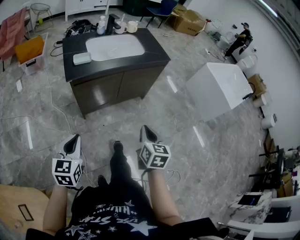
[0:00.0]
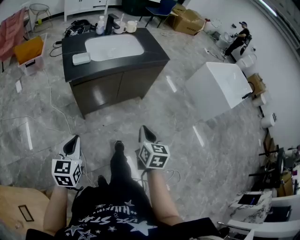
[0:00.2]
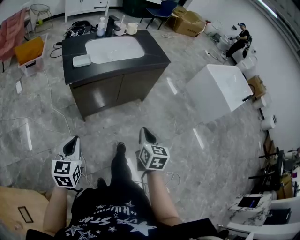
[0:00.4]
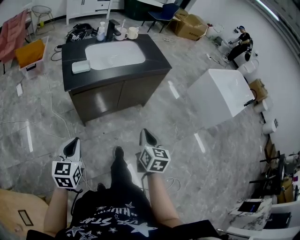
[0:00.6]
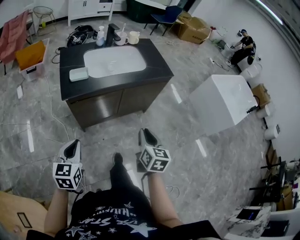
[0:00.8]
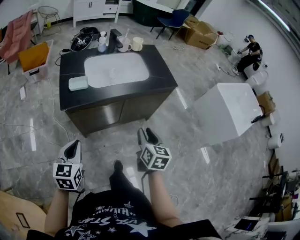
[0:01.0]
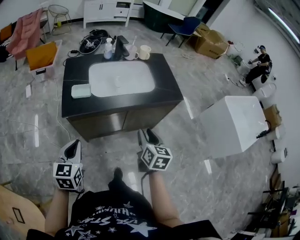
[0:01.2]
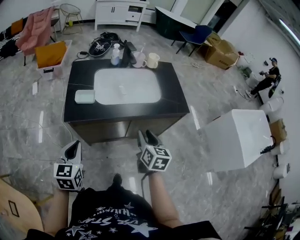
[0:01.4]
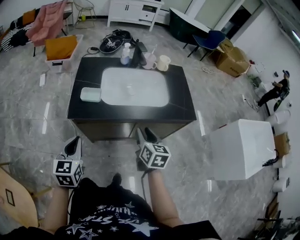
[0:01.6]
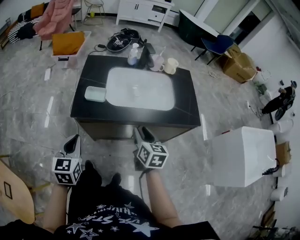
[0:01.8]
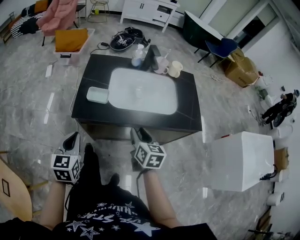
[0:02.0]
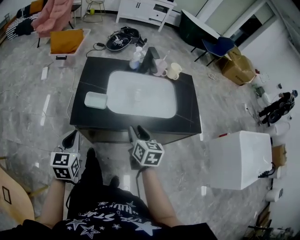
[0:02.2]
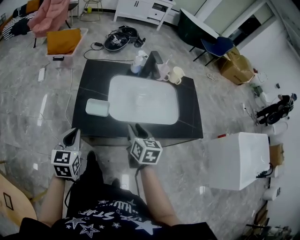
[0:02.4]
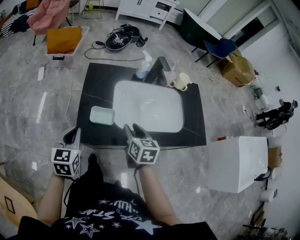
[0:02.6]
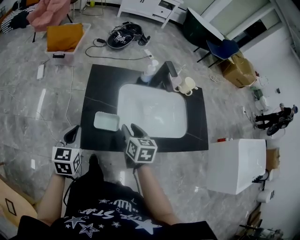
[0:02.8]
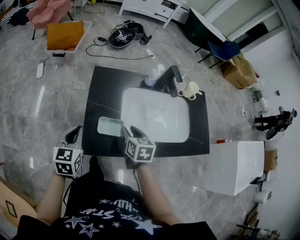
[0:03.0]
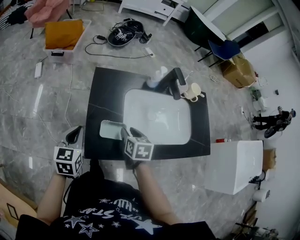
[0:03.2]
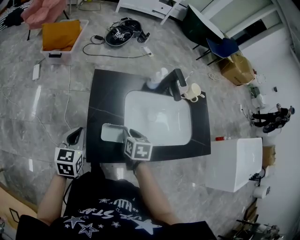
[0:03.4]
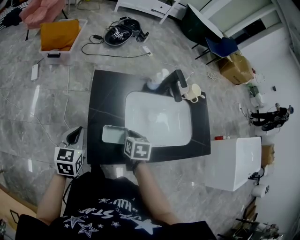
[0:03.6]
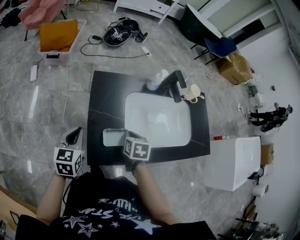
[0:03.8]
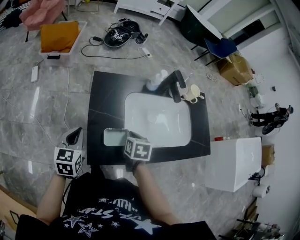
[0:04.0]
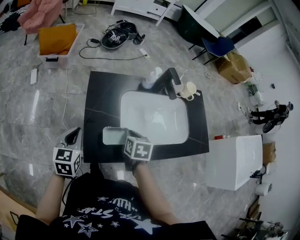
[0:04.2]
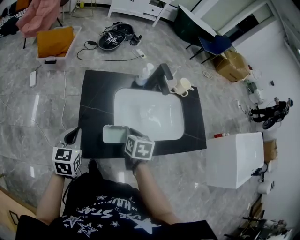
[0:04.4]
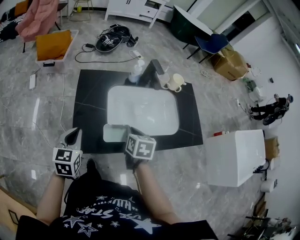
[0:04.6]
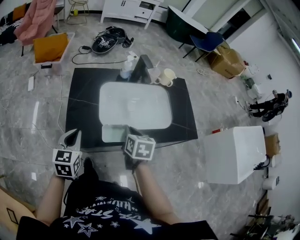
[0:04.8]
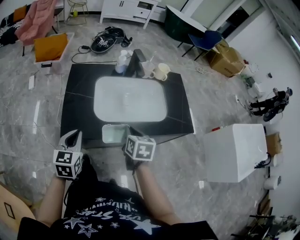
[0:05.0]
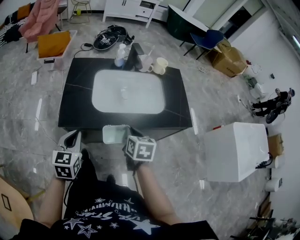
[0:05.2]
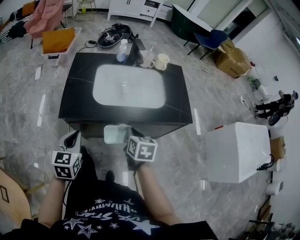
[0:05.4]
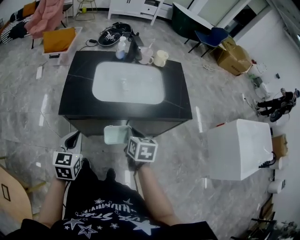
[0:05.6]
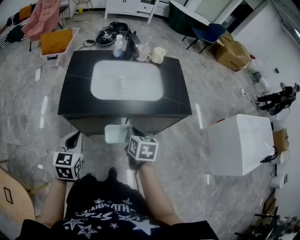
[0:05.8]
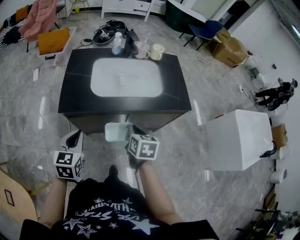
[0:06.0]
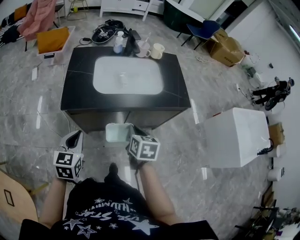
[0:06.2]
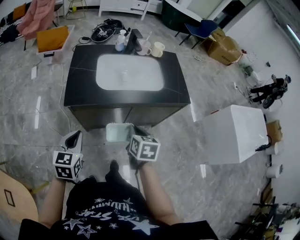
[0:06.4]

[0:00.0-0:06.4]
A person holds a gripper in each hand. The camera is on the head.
0:00.0 to 0:01.6: The right gripper moves some 40 cm, rotates about 20 degrees, and opens up; the left gripper changes place by approximately 25 cm, and changes its angle by about 20 degrees.
0:01.6 to 0:03.2: Both grippers travel together forward and to the left, some 30 cm. The right gripper turns by some 20 degrees.
0:03.2 to 0:04.8: The left gripper heads to the right and backward, covering about 15 cm; the right gripper travels to the right, backward and upward by roughly 15 cm, and closes its fingers.
0:04.8 to 0:06.4: The two grippers go approximately 25 cm backward.

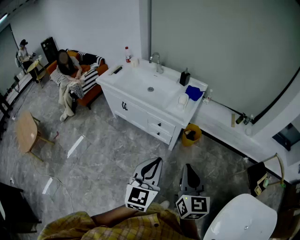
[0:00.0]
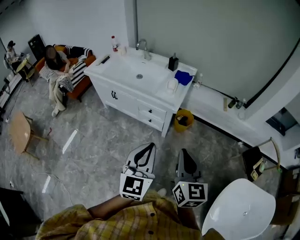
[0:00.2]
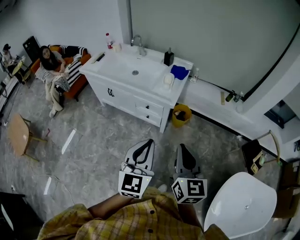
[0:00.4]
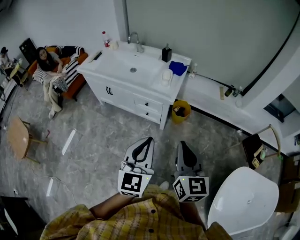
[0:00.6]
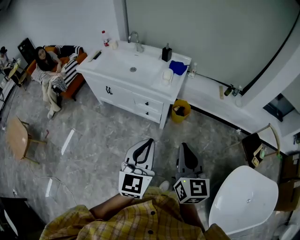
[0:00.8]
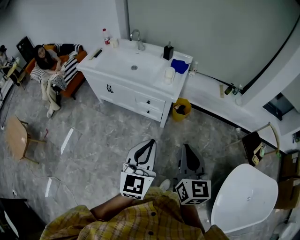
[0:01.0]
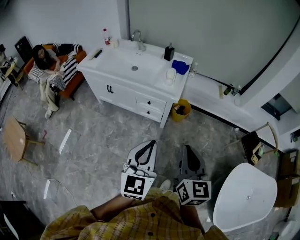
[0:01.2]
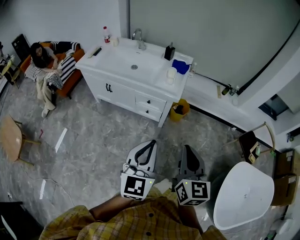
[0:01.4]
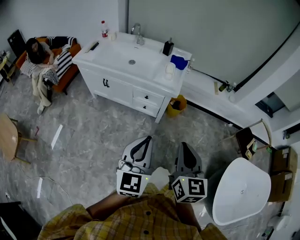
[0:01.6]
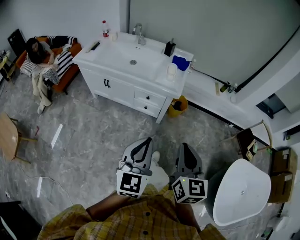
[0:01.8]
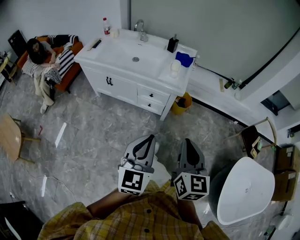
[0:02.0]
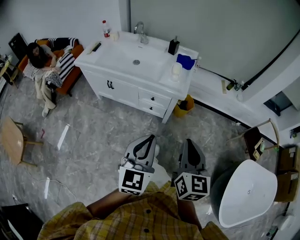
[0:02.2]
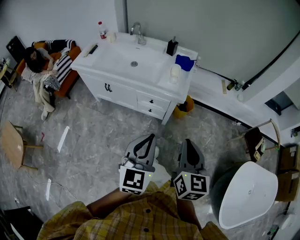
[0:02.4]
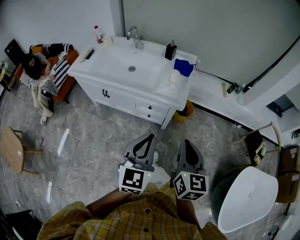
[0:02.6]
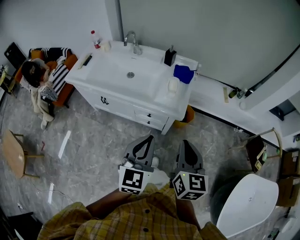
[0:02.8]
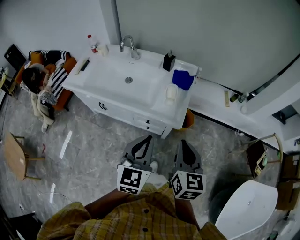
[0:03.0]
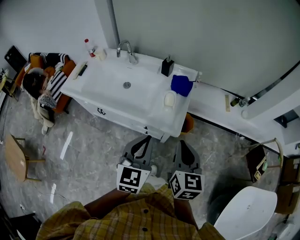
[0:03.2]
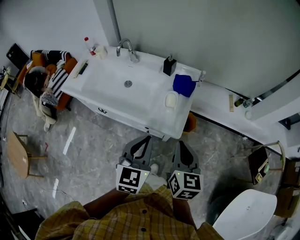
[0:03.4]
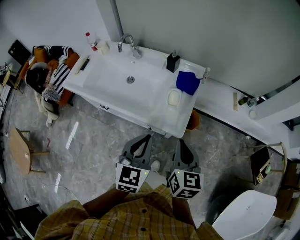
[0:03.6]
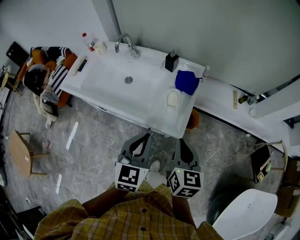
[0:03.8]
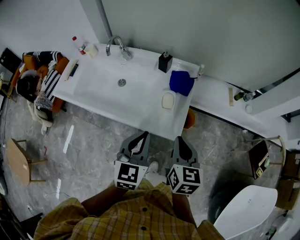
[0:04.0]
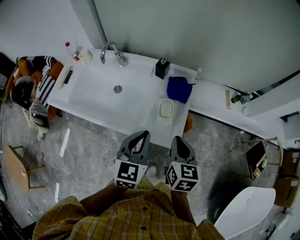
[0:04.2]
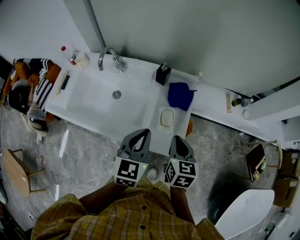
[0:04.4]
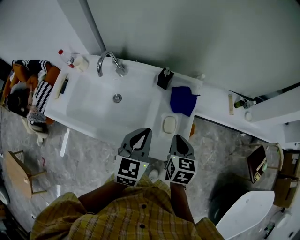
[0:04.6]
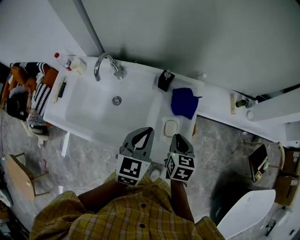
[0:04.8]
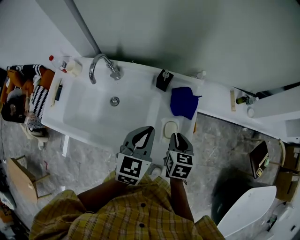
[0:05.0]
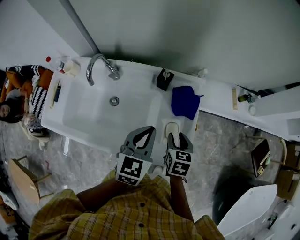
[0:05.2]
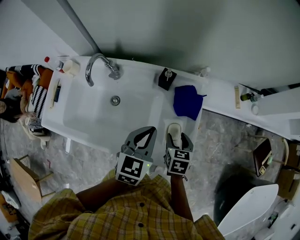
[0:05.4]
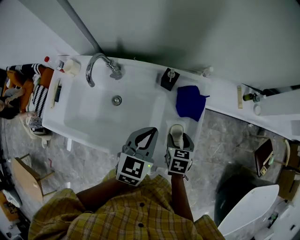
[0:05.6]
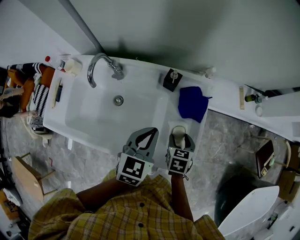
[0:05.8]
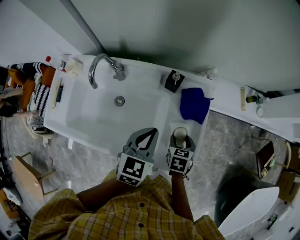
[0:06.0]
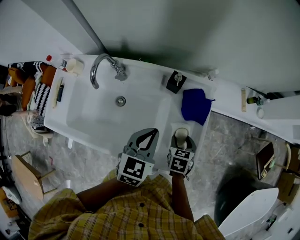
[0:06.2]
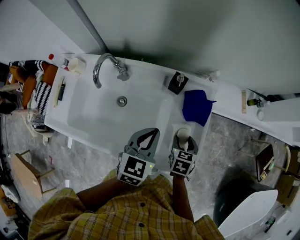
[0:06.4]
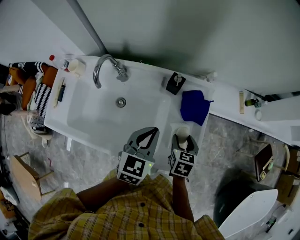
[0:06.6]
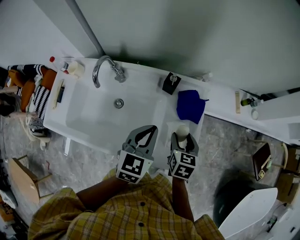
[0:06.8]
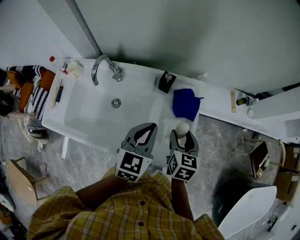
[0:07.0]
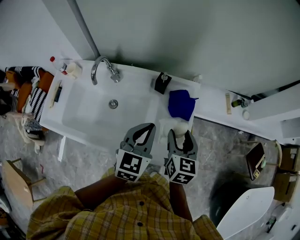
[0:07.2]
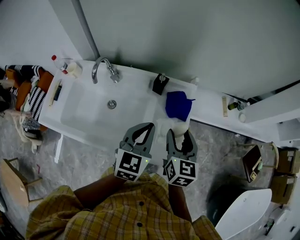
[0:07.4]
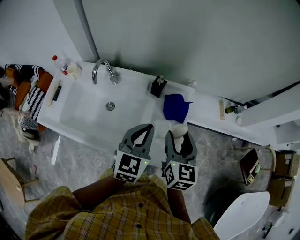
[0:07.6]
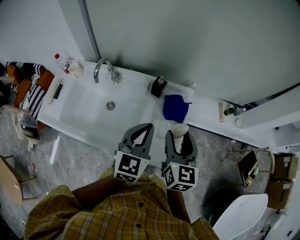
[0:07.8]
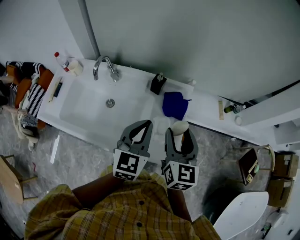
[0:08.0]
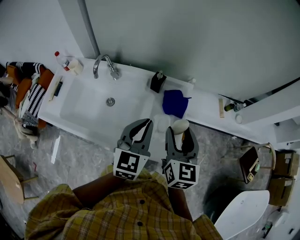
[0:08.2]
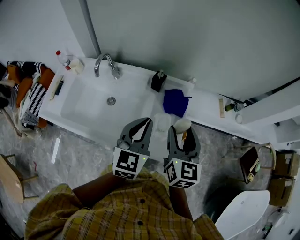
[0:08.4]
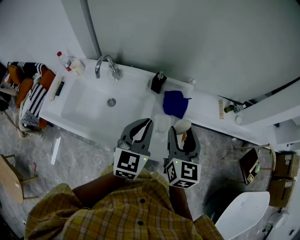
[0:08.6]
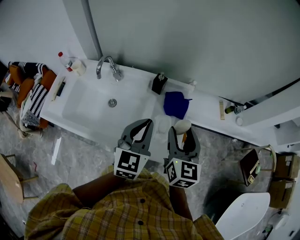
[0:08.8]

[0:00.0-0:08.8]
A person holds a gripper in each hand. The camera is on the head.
0:00.0 to 0:01.4: Both grippers move to the left, some 5 cm.
0:01.4 to 0:03.0: The two grippers go approximately 30 cm forward.
0:03.0 to 0:04.4: Both grippers move forward, approximately 25 cm.
0:04.4 to 0:05.8: The left gripper goes about 15 cm forward and downward. Meanwhile the right gripper heads downward and forward, covering approximately 20 cm, turns by some 20 degrees, and opens.
0:05.8 to 0:07.4: The left gripper heads upward, covering roughly 5 cm; the right gripper heads upward, covering about 20 cm, and tips its fingers upward by some 30 degrees.
0:07.4 to 0:08.8: The left gripper changes place by about 5 cm, while the right gripper shifts roughly 5 cm upward.

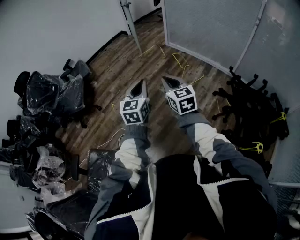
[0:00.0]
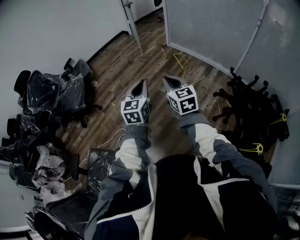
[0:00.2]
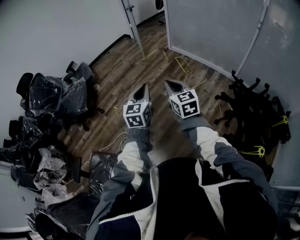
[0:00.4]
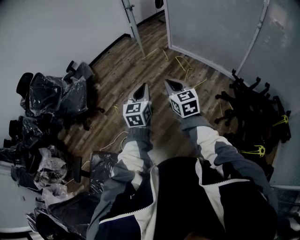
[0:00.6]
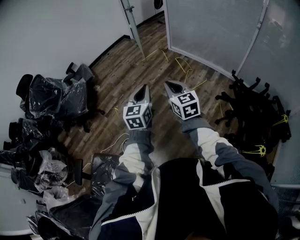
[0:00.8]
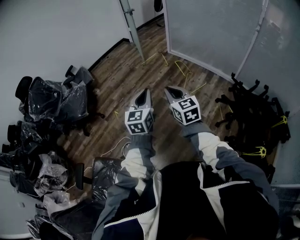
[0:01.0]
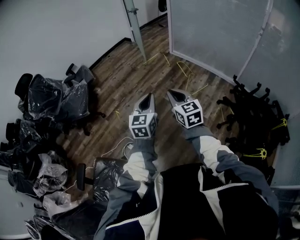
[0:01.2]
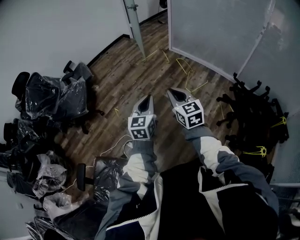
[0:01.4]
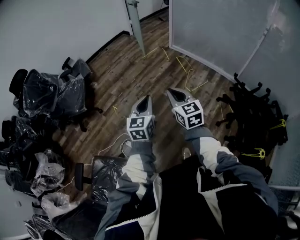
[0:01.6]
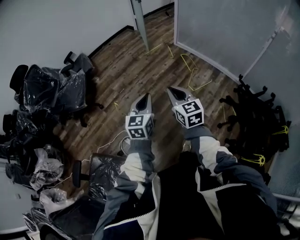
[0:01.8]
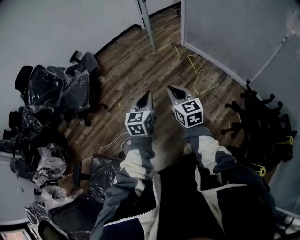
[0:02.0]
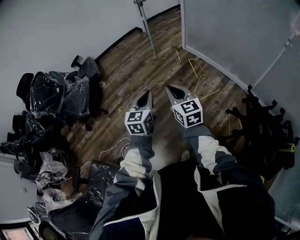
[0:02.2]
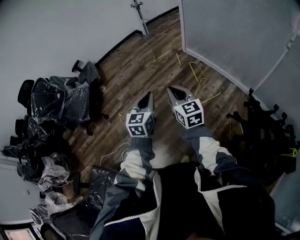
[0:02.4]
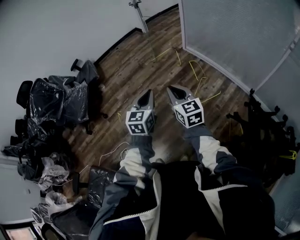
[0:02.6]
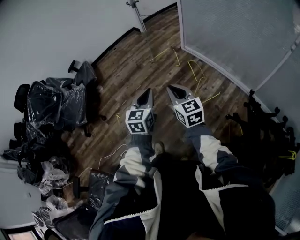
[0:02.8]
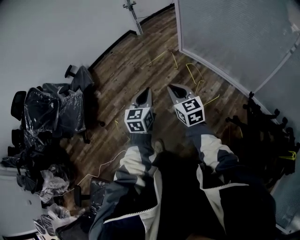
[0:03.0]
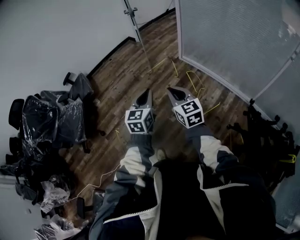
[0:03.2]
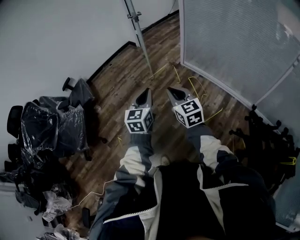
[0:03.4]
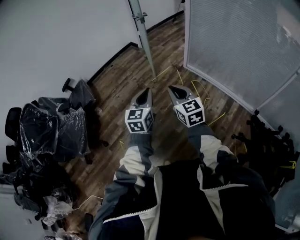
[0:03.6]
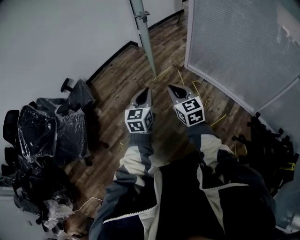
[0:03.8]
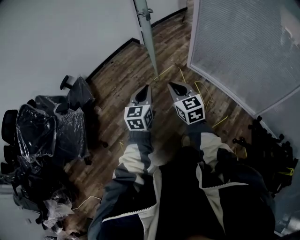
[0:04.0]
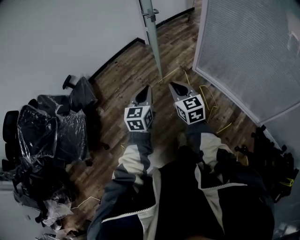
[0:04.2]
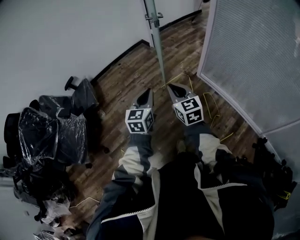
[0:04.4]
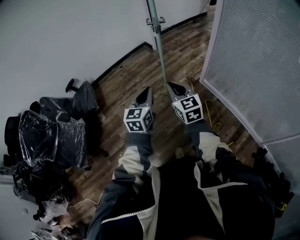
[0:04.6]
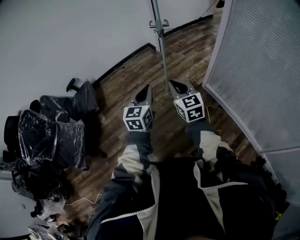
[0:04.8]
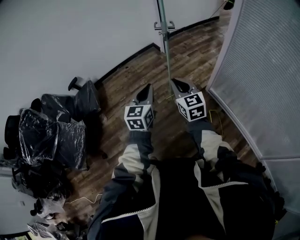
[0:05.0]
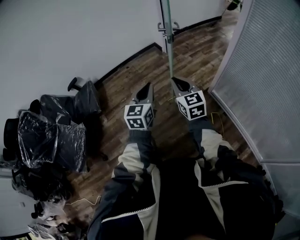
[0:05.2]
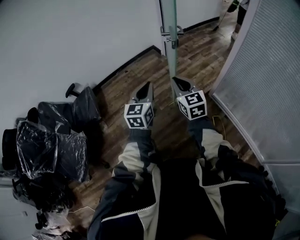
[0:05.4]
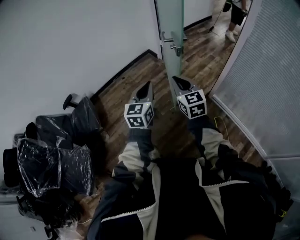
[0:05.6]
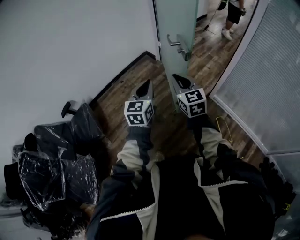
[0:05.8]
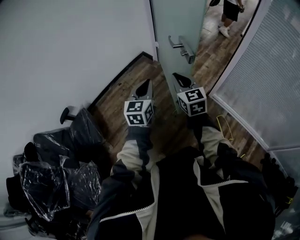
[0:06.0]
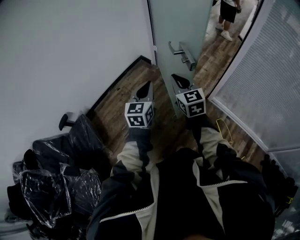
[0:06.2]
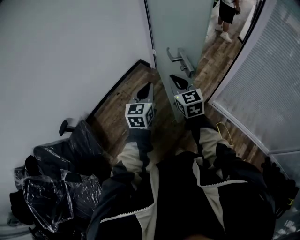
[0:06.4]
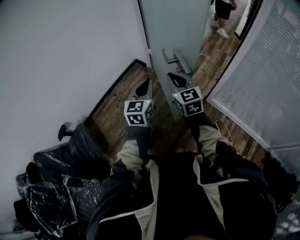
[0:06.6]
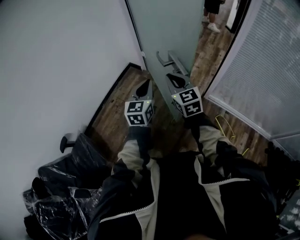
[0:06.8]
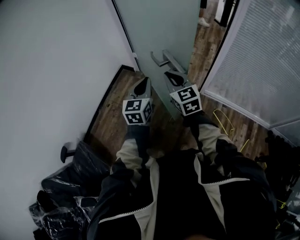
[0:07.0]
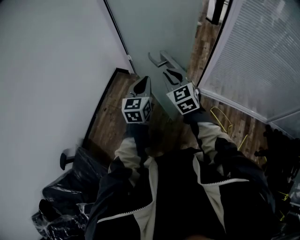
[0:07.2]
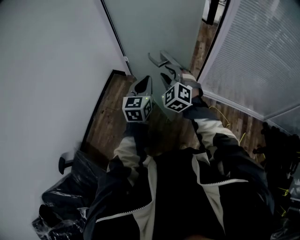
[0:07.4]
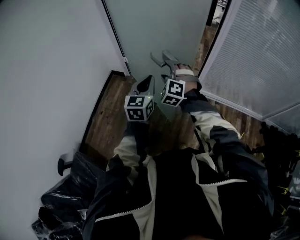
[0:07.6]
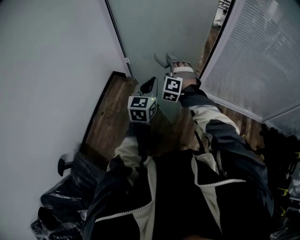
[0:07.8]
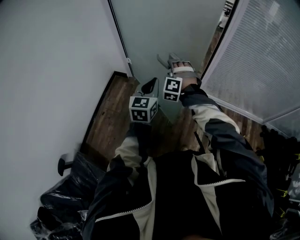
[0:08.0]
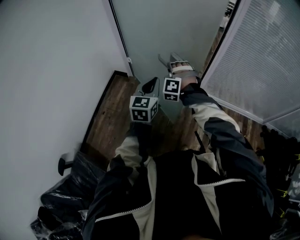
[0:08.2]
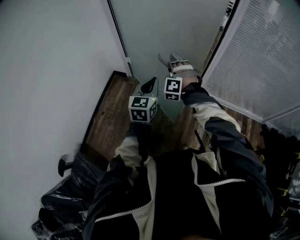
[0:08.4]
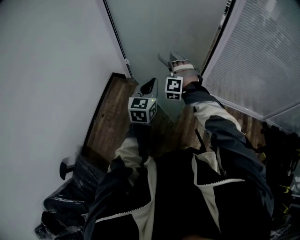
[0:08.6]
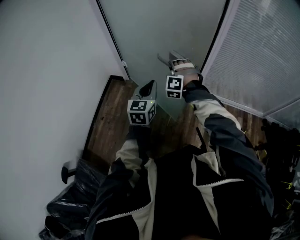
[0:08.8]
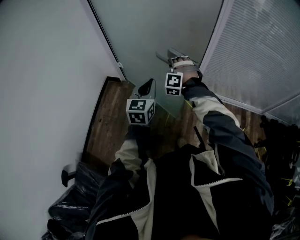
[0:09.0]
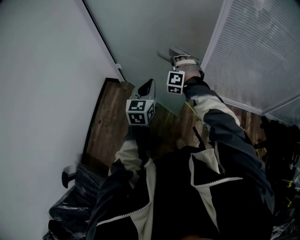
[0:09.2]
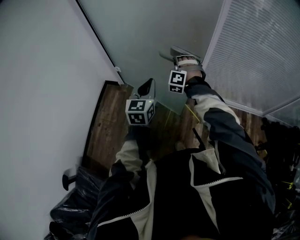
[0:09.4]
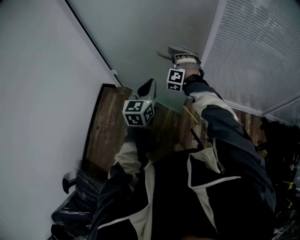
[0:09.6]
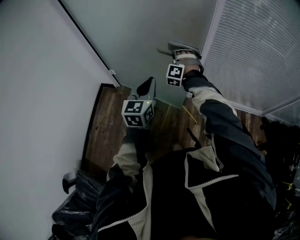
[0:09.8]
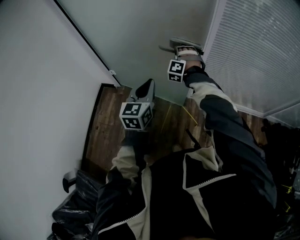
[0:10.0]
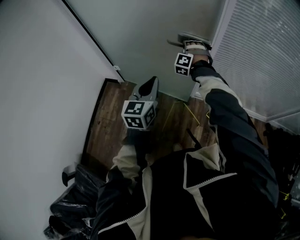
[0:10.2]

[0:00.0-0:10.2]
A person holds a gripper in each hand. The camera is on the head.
0:00.0 to 0:01.4: The two grippers go approximately 5 cm to the left.
0:01.4 to 0:03.0: Both grippers move forward and to the right, about 35 cm.
0:03.0 to 0:04.4: The pair of grippers is taken forward, roughly 40 cm.
0:04.4 to 0:05.8: The pair of grippers is taken forward, roughly 40 cm.
0:05.8 to 0:07.2: The two grippers go roughly 15 cm forward. The right gripper swivels approximately 20 degrees. Meanwhile the left gripper changes its angle by approximately 20 degrees.
0:07.2 to 0:08.8: The right gripper goes approximately 15 cm forward and downward, rotates around the line of its fingers by approximately 60 degrees, counterclockwise from behind, and opens, then closes again.
0:08.8 to 0:10.2: The right gripper shifts approximately 30 cm forward and to the right, while the left gripper is displaced forward and to the right by about 20 cm.
